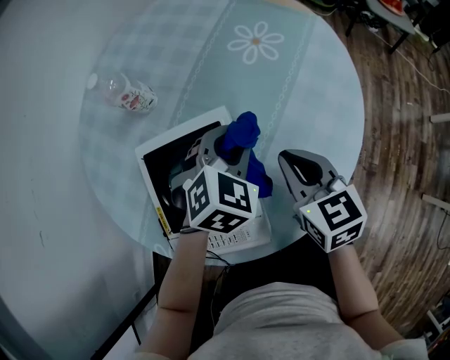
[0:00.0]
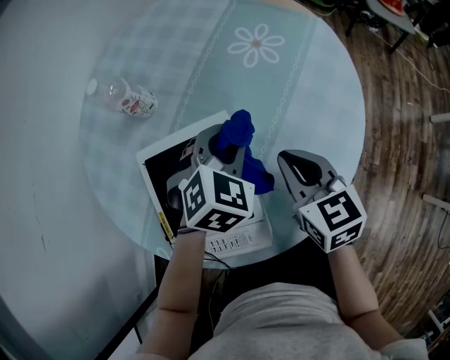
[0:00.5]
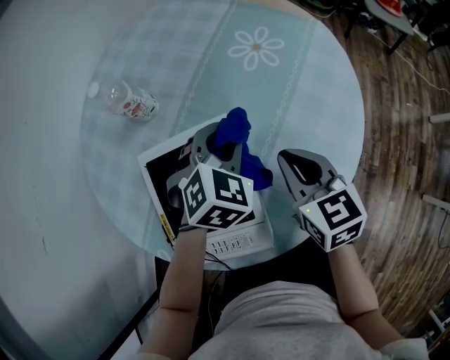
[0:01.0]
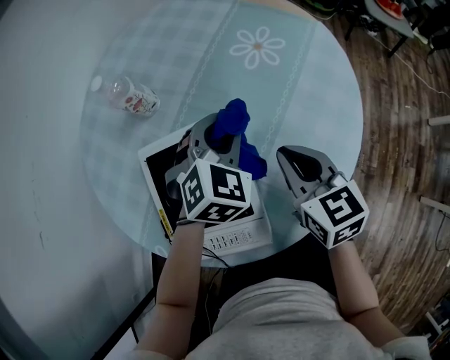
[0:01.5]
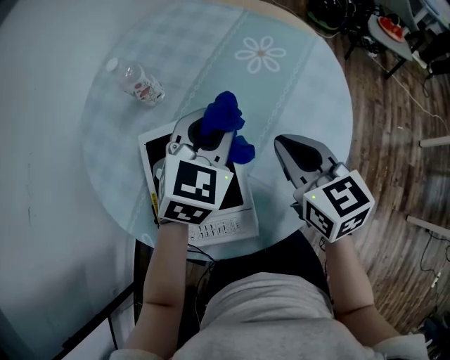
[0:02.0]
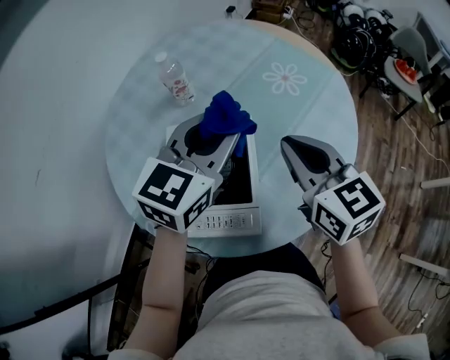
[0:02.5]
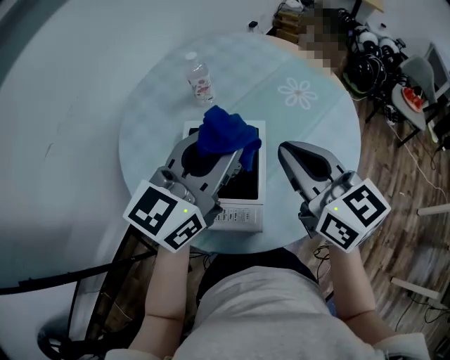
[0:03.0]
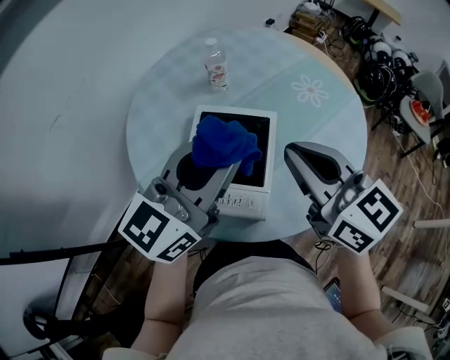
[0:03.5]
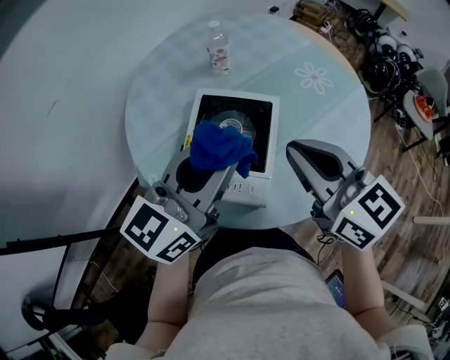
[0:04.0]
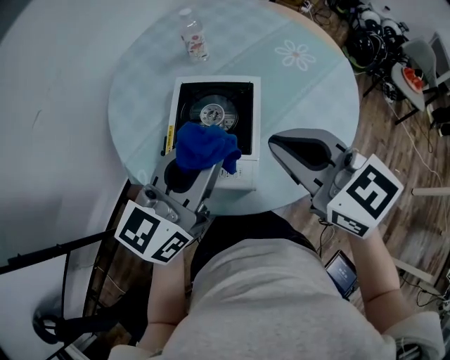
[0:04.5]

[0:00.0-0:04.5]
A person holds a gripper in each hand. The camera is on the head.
0:00.0 to 0:02.0: The two grippers go approximately 10 cm upward.
0:02.0 to 0:04.5: The left gripper heads backward, to the left and upward, covering roughly 25 cm, and points its fingers approximately 30 degrees further upward, while the right gripper is displaced backward, upward and to the left by approximately 20 cm, and turns by some 40 degrees.

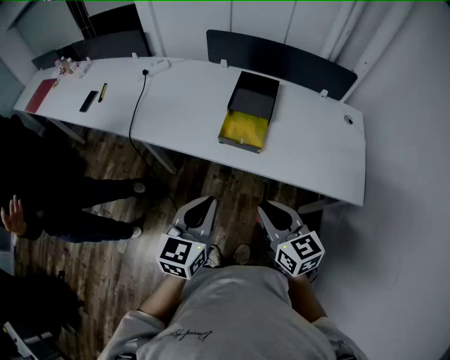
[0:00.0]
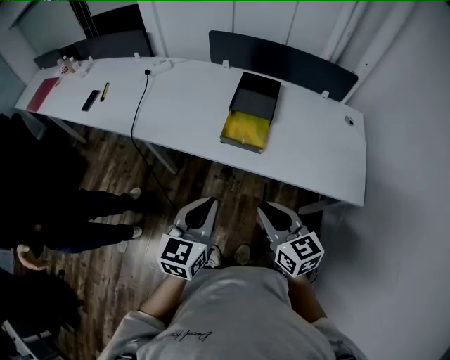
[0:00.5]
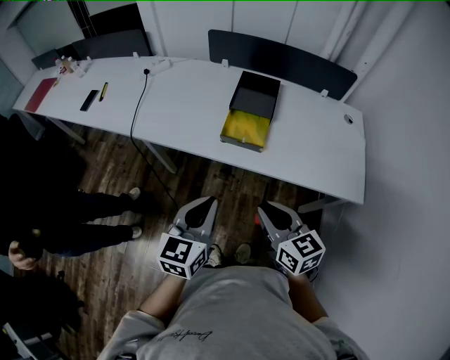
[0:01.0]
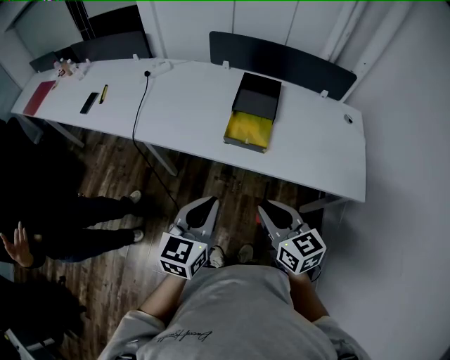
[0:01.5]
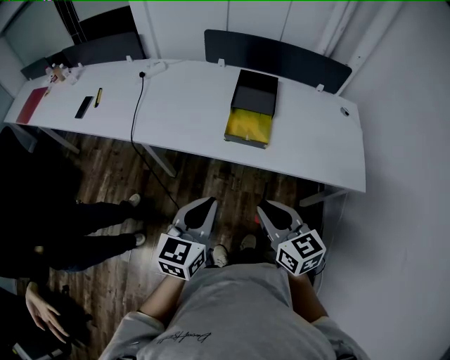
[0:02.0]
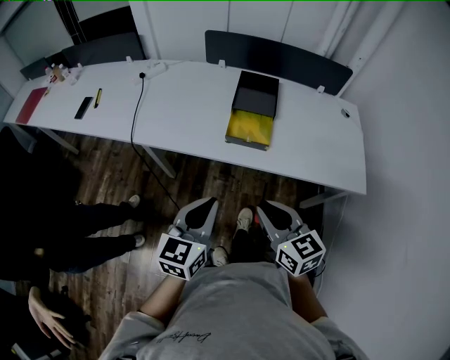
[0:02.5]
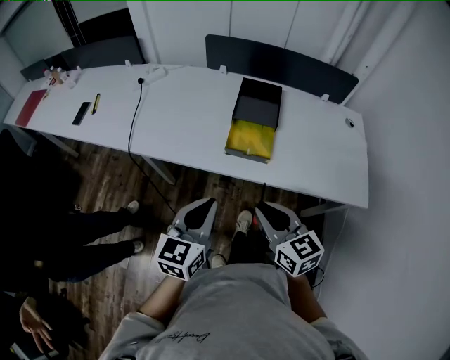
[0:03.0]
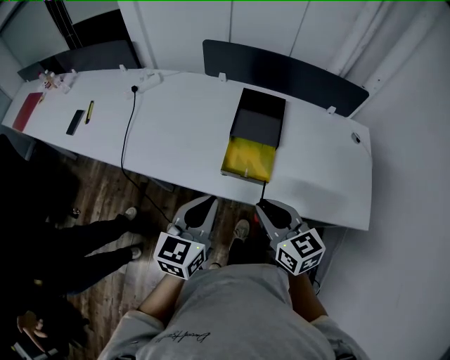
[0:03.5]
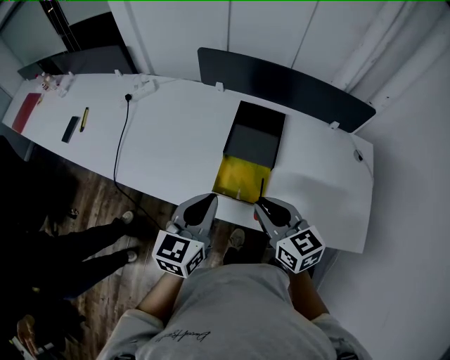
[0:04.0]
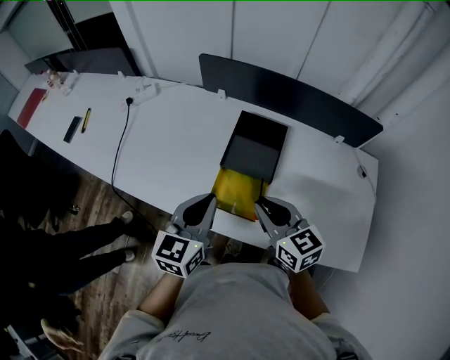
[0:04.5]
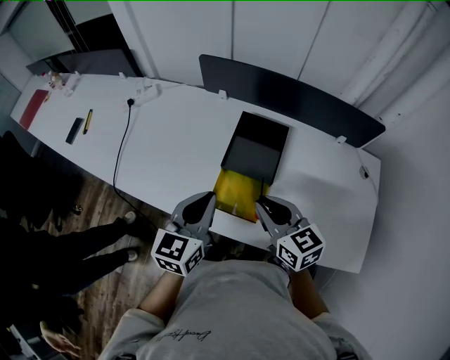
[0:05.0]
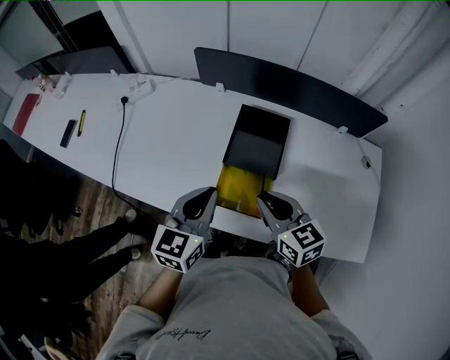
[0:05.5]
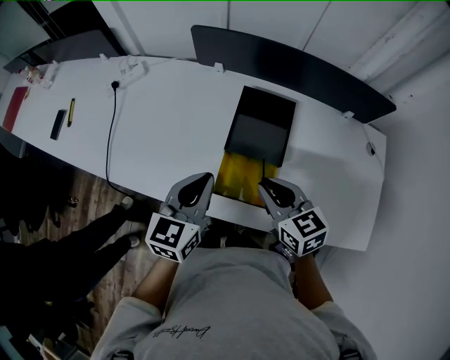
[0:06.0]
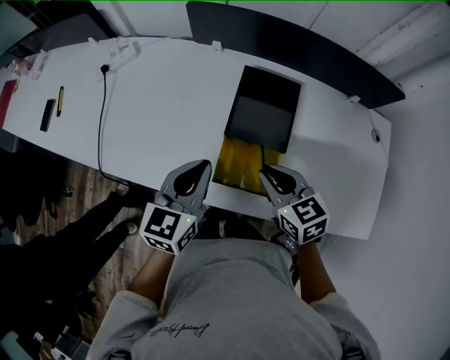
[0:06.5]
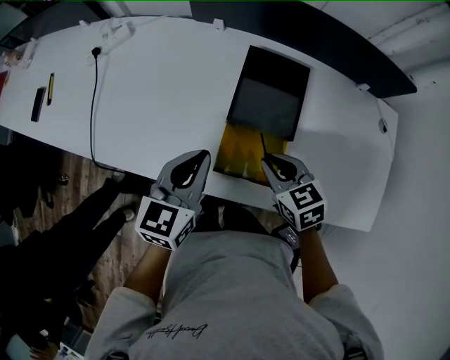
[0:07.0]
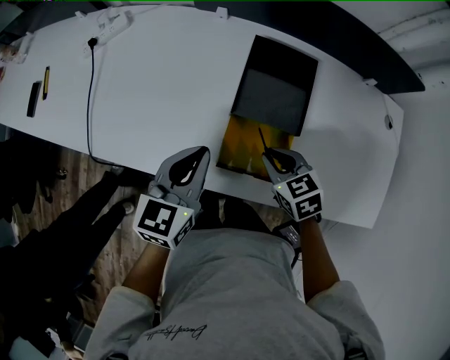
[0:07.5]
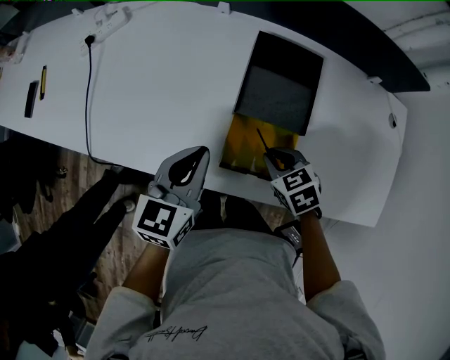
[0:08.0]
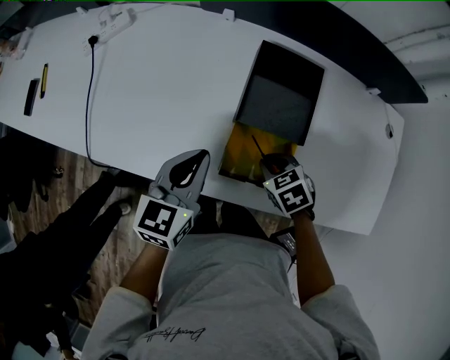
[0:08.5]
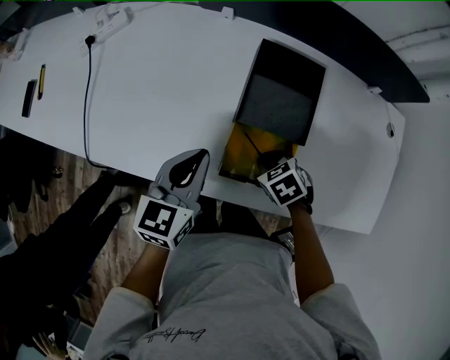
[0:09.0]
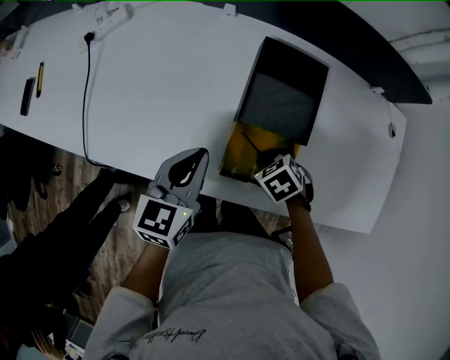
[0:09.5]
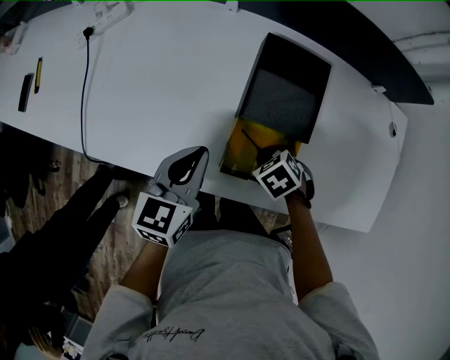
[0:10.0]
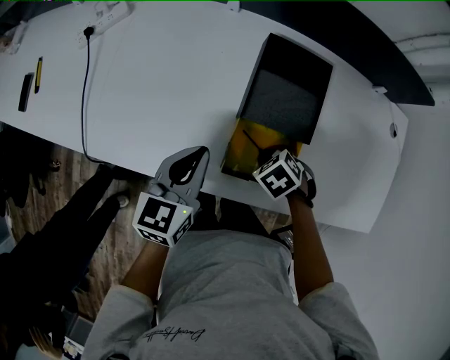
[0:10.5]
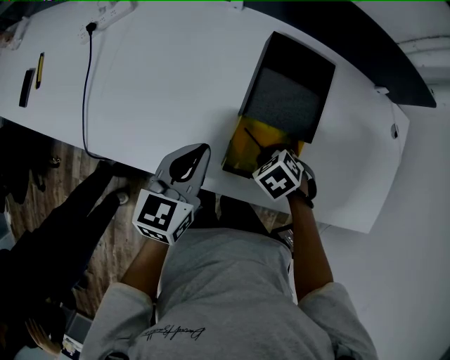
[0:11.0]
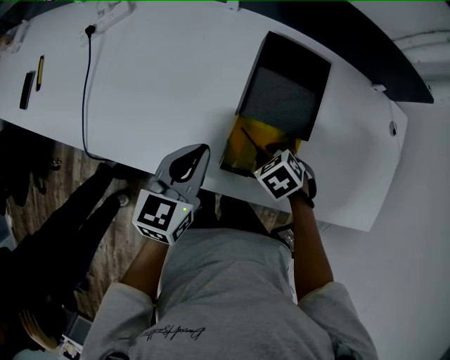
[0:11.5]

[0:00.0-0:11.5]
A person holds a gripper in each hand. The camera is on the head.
0:00.0 to 0:02.0: Both grippers move to the left, roughly 5 cm.
0:02.0 to 0:04.0: Both grippers travel together forward, roughly 25 cm.
0:04.0 to 0:06.0: The grippers both shift forward by some 10 cm.
0:06.0 to 0:07.5: The right gripper shifts about 15 cm downward, and swivels approximately 20 degrees. Meanwhile the left gripper travels downward by some 5 cm.
0:07.5 to 0:09.5: The right gripper travels downward by roughly 10 cm, and rotates approximately 30 degrees.
0:09.5 to 0:11.5: The grippers make only small movements.

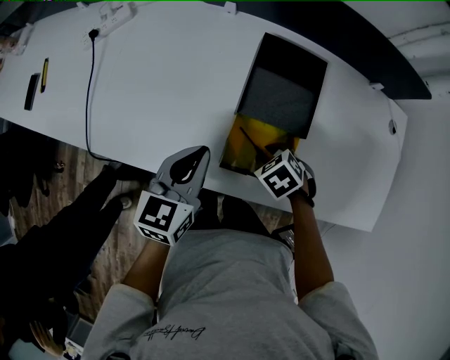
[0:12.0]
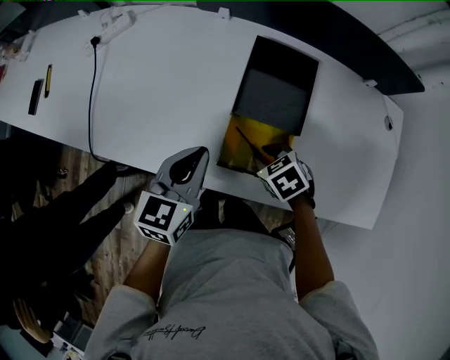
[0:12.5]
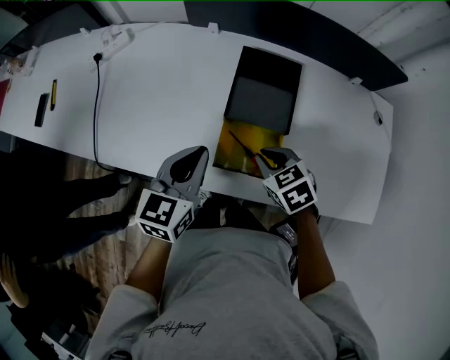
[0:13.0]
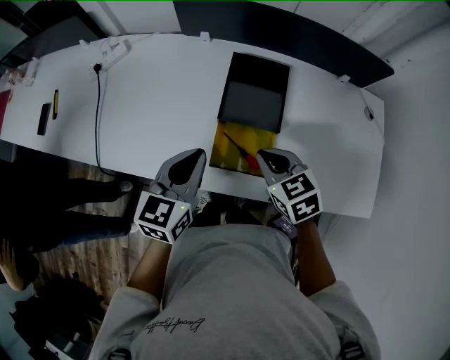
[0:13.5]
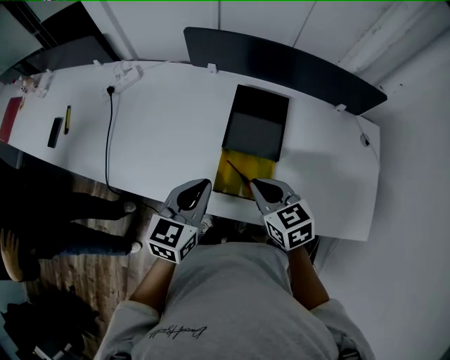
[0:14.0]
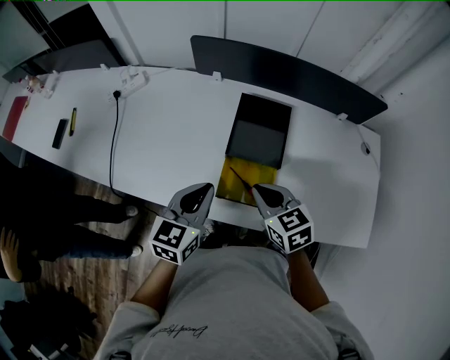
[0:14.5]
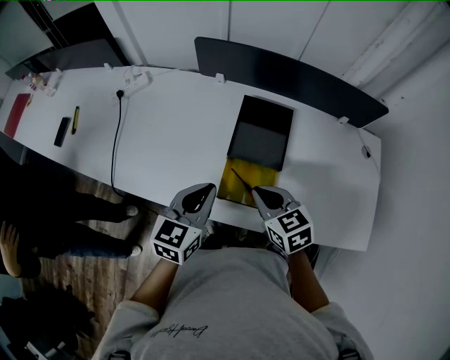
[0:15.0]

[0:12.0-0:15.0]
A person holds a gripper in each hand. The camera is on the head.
0:12.0 to 0:13.5: The right gripper travels upward by about 15 cm, points its fingers roughly 30 degrees further upward, and closes its fingers. Meanwhile the left gripper travels upward by some 10 cm.
0:13.5 to 0:15.0: The grippers make only small movements.

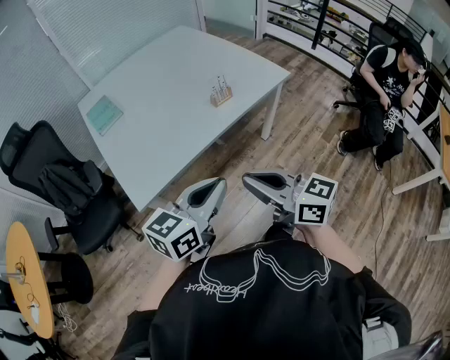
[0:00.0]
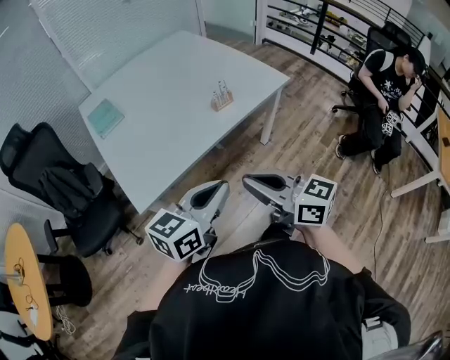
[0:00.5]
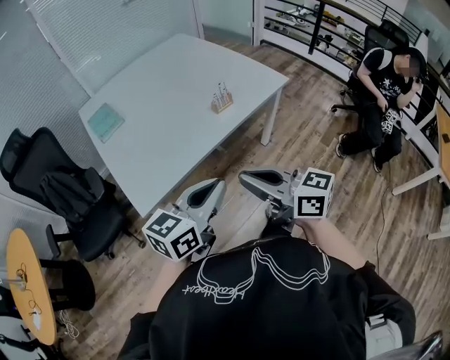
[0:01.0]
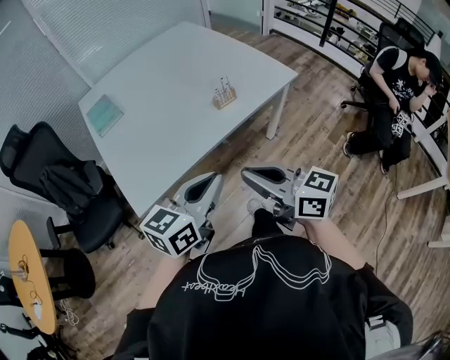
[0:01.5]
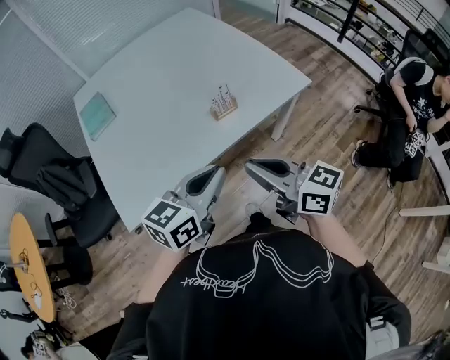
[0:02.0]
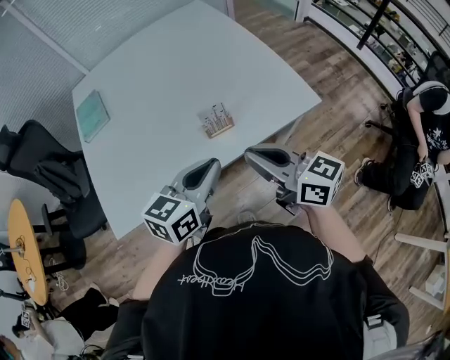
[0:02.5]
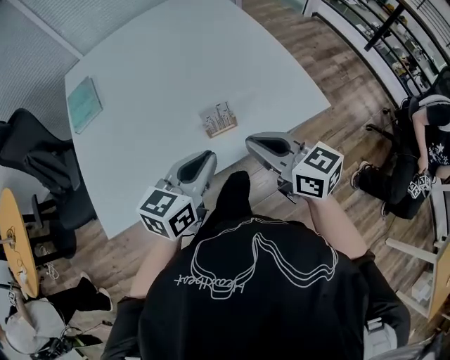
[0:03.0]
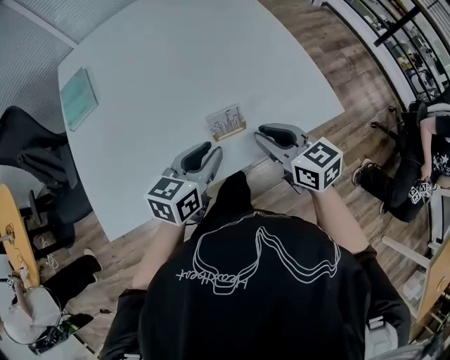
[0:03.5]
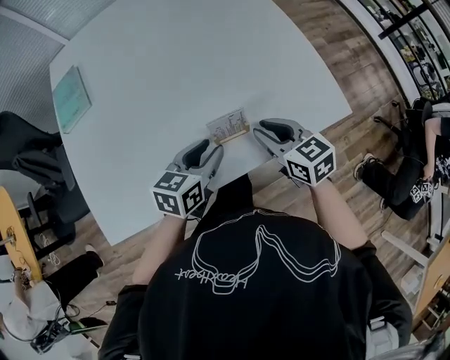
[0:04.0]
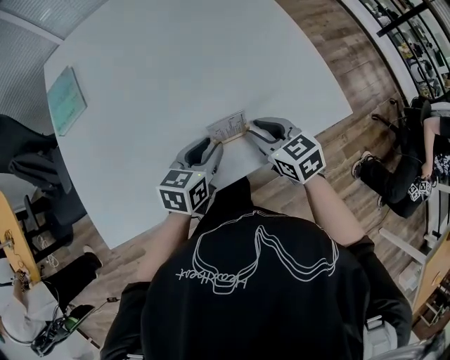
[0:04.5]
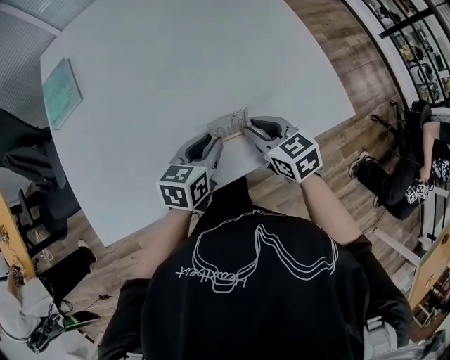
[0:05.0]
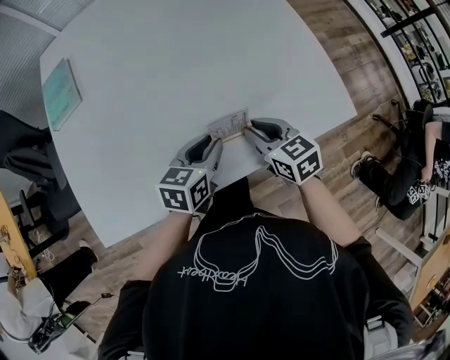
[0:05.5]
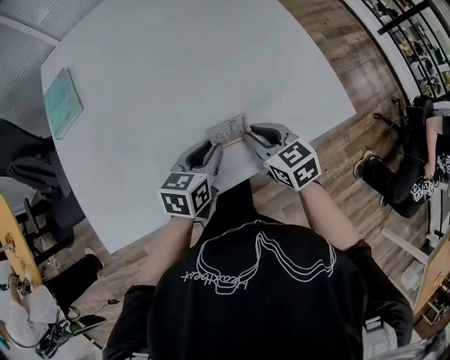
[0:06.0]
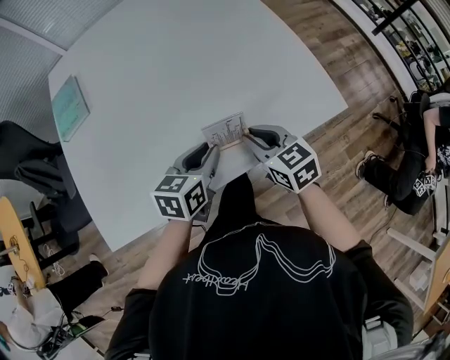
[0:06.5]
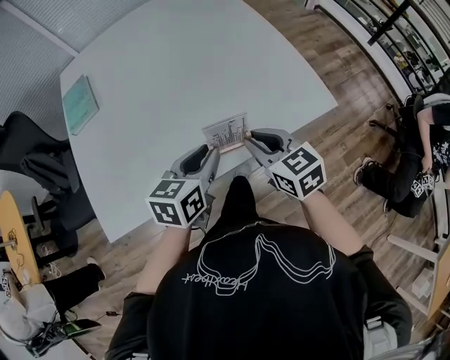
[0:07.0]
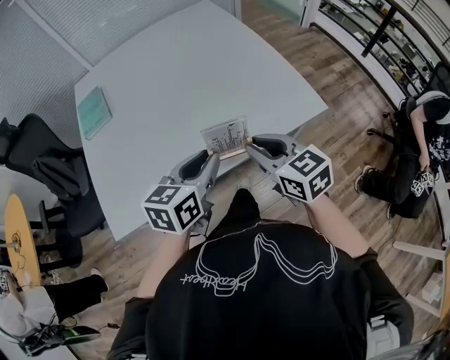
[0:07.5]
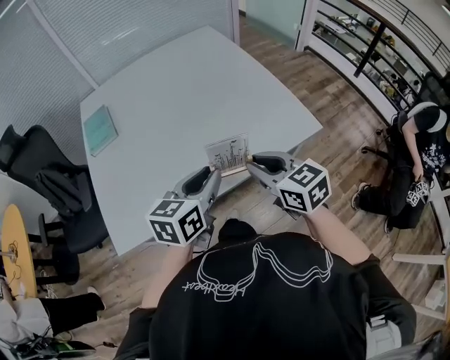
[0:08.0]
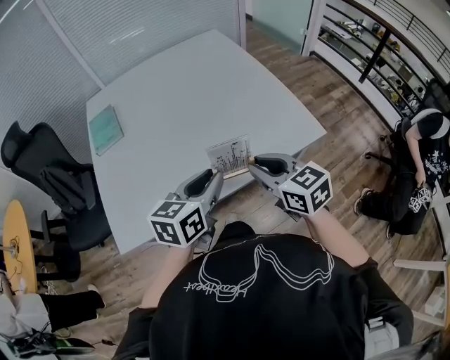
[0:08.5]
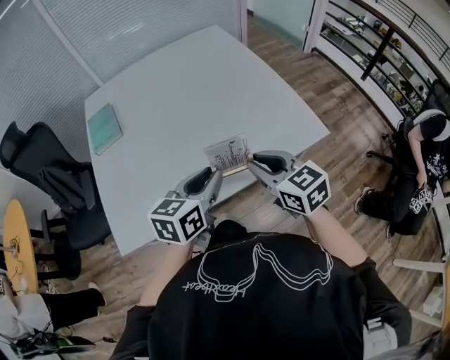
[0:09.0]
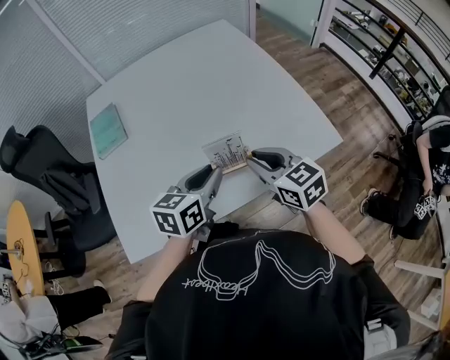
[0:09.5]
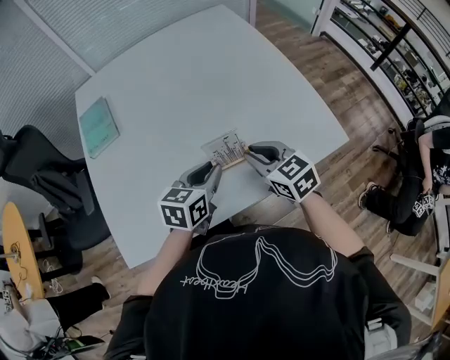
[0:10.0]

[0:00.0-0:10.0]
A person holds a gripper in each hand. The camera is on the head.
0:00.0 to 0:02.0: The right gripper shifts about 20 cm forward and to the right. The left gripper heads forward, covering approximately 20 cm.
0:02.0 to 0:04.0: Both grippers move forward and downward, some 35 cm. The left gripper turns by about 20 degrees, and opens its fingers. The right gripper rotates about 30 degrees, and opens its fingers.
0:04.0 to 0:06.0: The right gripper moves approximately 5 cm.
0:06.0 to 0:08.0: The grippers both shift upward and backward by about 25 cm.
0:08.0 to 0:10.0: The grippers both shift forward and downward by some 15 cm.
